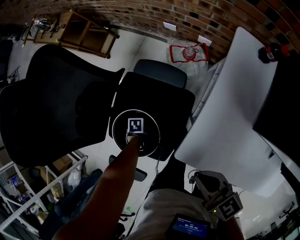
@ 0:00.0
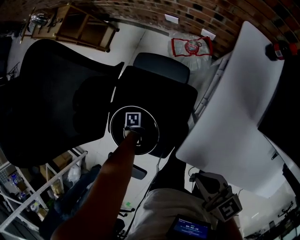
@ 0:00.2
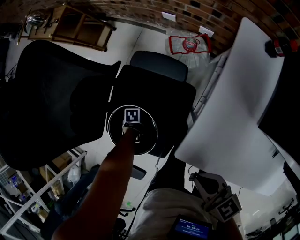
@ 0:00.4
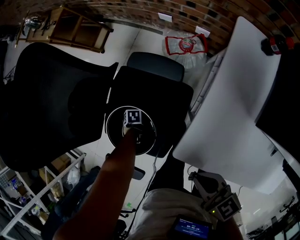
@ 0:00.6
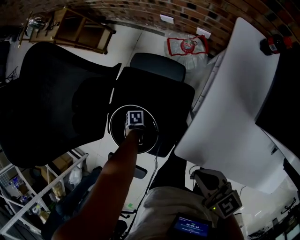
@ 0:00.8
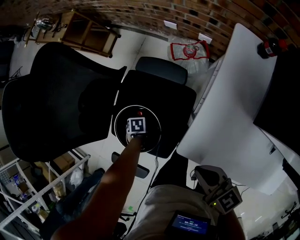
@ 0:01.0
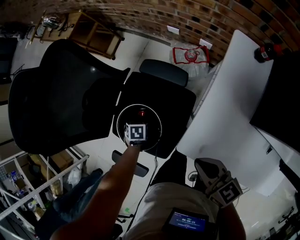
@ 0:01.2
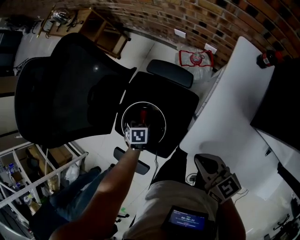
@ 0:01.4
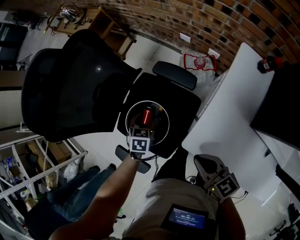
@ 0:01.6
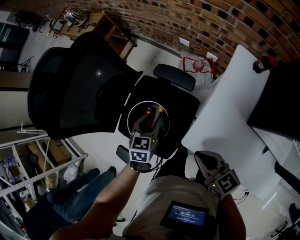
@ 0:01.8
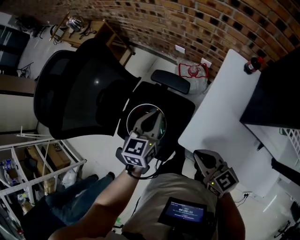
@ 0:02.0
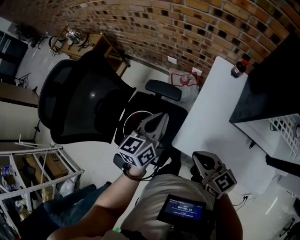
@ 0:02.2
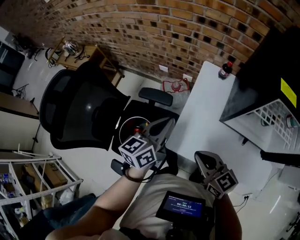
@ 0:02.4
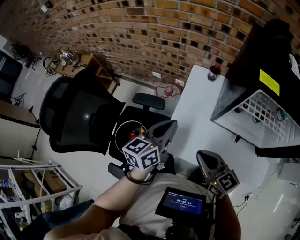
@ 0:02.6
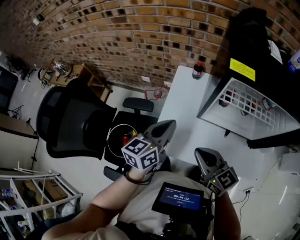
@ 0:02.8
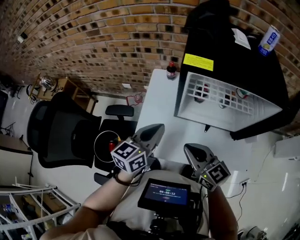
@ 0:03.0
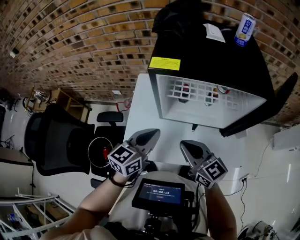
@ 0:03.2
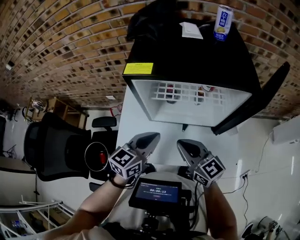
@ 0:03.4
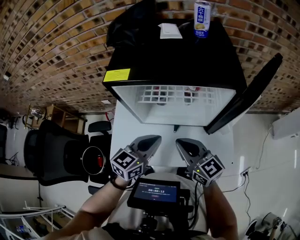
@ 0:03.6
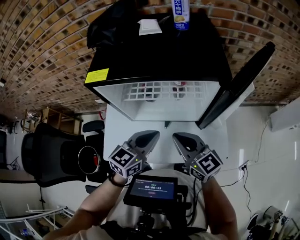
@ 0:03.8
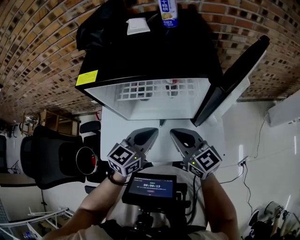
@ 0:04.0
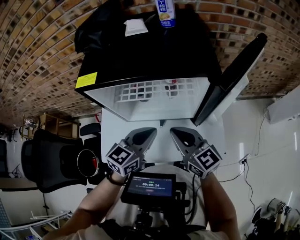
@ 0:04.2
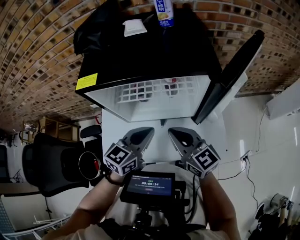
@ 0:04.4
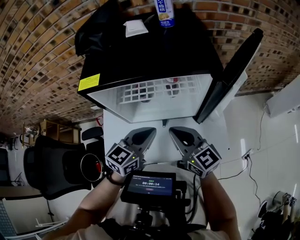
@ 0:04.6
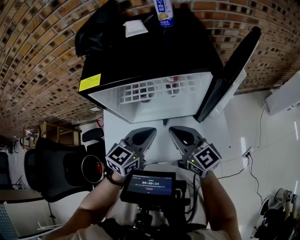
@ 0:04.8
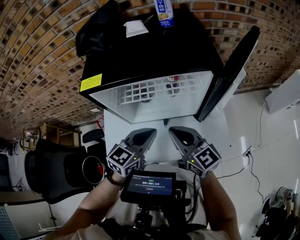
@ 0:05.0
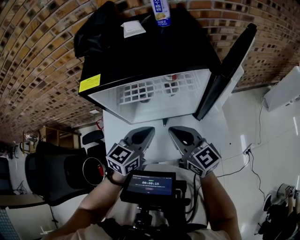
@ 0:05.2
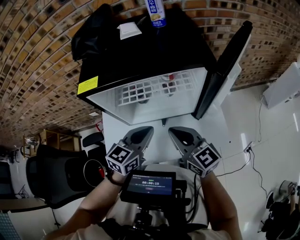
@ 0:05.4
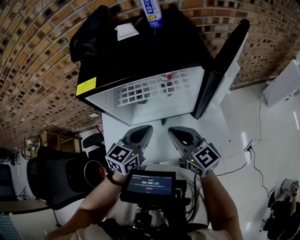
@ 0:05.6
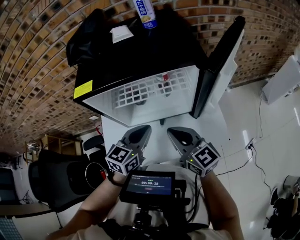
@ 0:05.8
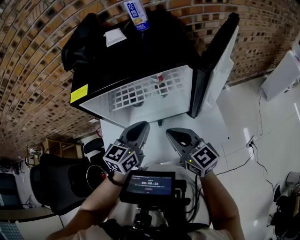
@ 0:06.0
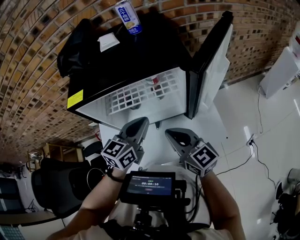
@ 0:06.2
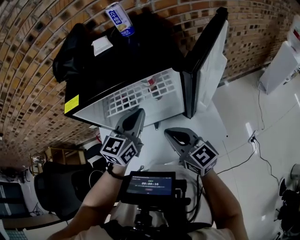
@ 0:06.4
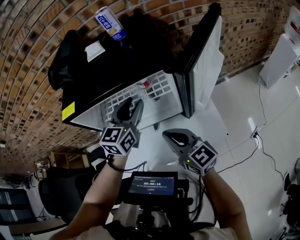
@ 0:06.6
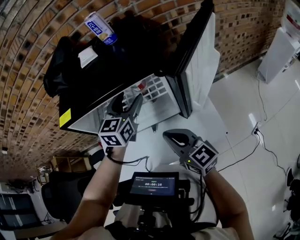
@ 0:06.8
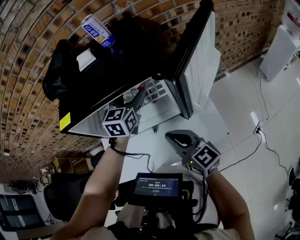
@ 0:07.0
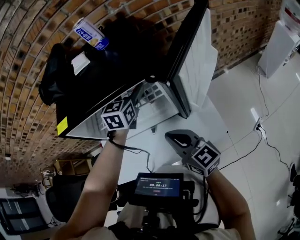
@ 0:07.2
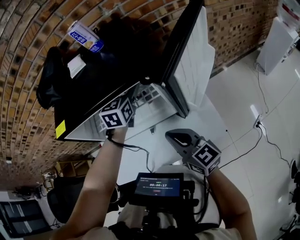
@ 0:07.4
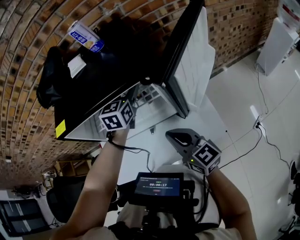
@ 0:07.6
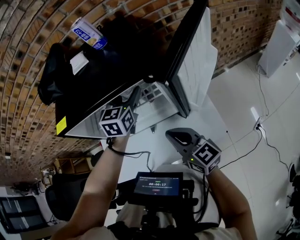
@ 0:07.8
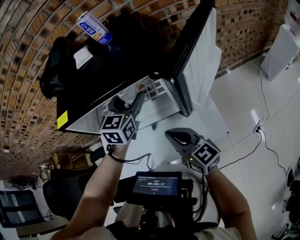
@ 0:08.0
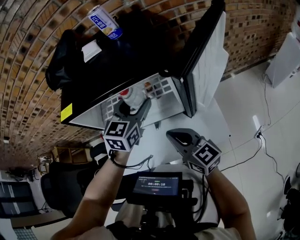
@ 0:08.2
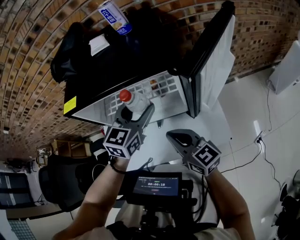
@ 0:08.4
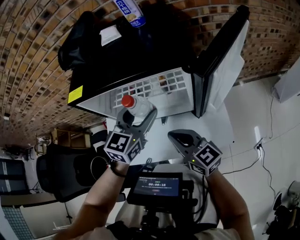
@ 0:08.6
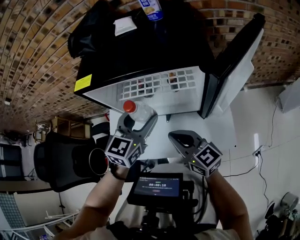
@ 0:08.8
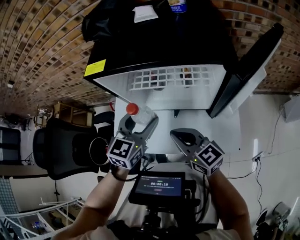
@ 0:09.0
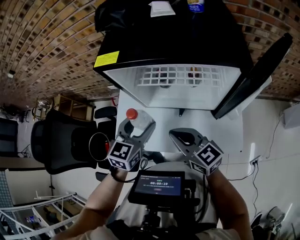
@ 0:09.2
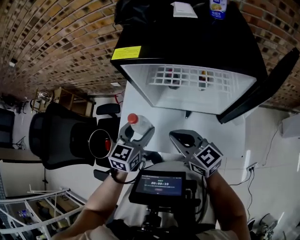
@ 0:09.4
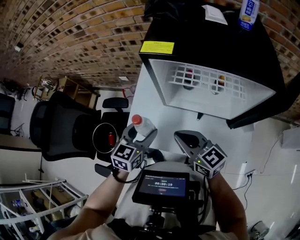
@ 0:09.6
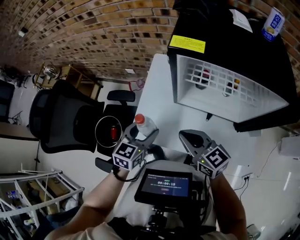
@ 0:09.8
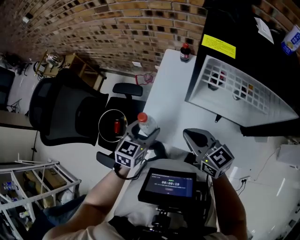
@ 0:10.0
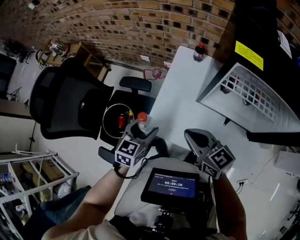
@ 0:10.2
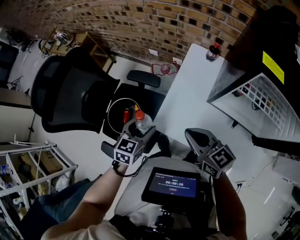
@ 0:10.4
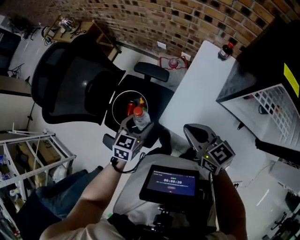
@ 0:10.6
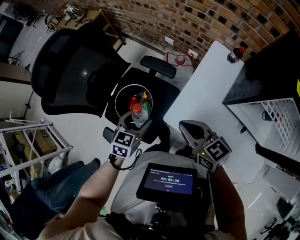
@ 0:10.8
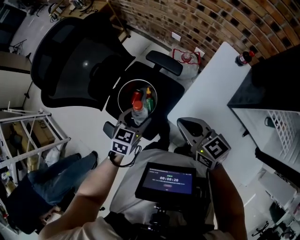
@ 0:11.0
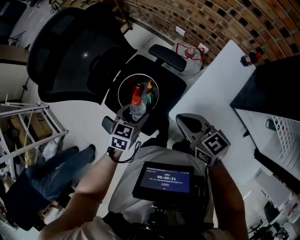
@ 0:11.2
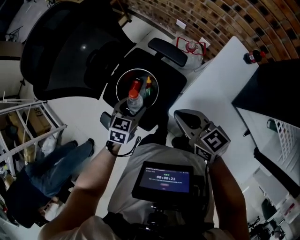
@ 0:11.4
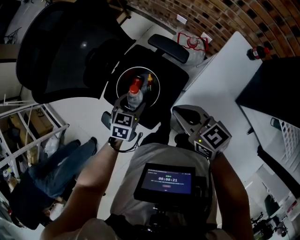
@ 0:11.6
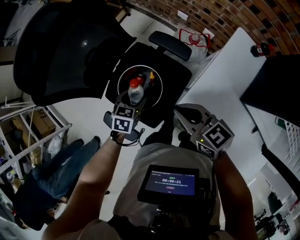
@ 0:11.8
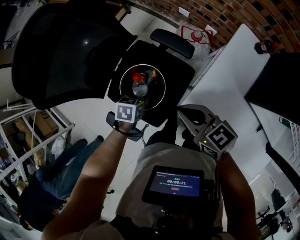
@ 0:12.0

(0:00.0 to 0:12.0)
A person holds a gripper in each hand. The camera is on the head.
0:00.0 - 0:01.6: The left gripper heads upward, covering about 20 cm, and swivels approximately 50 degrees.
0:01.6 - 0:03.0: The right gripper shifts by approximately 30 cm, and rotates about 30 degrees. The left gripper shifts by approximately 50 cm, tilts its fingers some 50 degrees upward, and closes its fingers.
0:03.0 - 0:04.4: Both grippers move to the right, roughly 20 cm. The left gripper rotates roughly 30 degrees.
0:04.4 - 0:06.0: The grippers stay close to where they were, moving slightly.
0:06.0 - 0:07.6: The left gripper heads forward and to the right, covering about 20 cm, and opens; the right gripper is displaced to the right by about 5 cm.
0:07.6 - 0:09.0: The right gripper travels to the left by approximately 10 cm, and swivels approximately 20 degrees, while the left gripper shifts about 25 cm backward and to the left.
0:09.0 - 0:10.4: The left gripper moves to the left and downward, about 40 cm, and rotates approximately 30 degrees, while the right gripper heads to the left, covering approximately 30 cm, and rotates approximately 20 degrees.
0:10.4 - 0:12.0: The right gripper heads to the left, forward and downward, covering about 20 cm, and turns by approximately 20 degrees, while the left gripper moves downward, to the left and forward, some 25 cm, and rotates about 30 degrees.

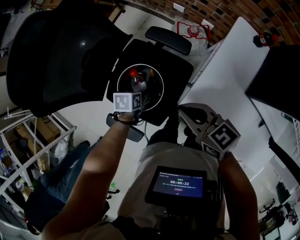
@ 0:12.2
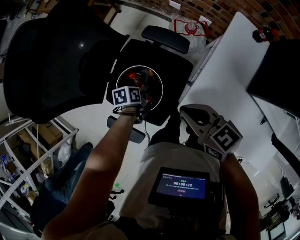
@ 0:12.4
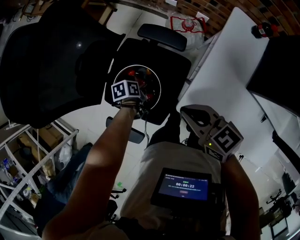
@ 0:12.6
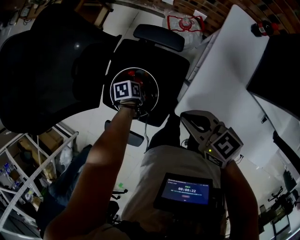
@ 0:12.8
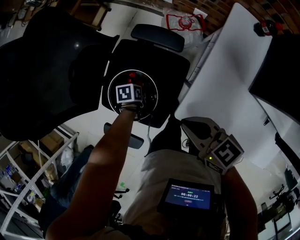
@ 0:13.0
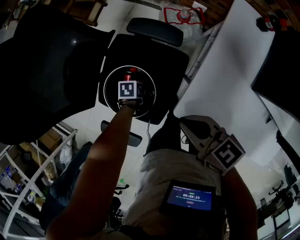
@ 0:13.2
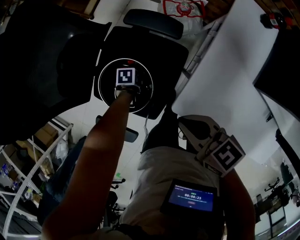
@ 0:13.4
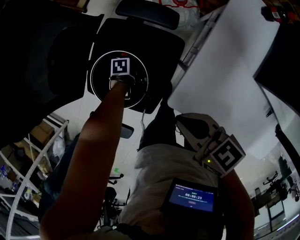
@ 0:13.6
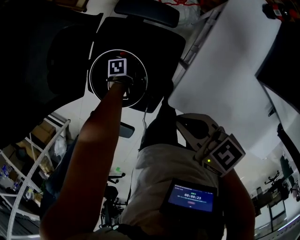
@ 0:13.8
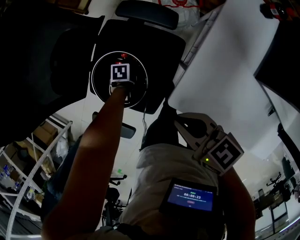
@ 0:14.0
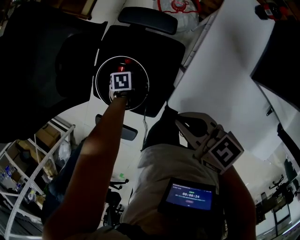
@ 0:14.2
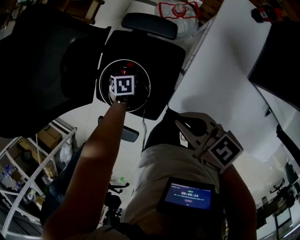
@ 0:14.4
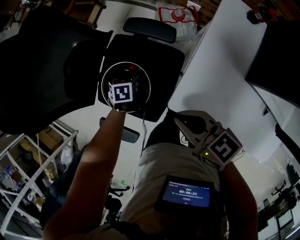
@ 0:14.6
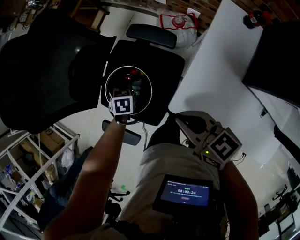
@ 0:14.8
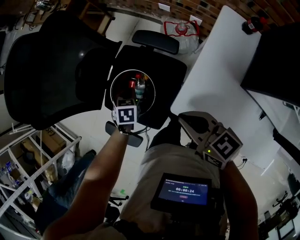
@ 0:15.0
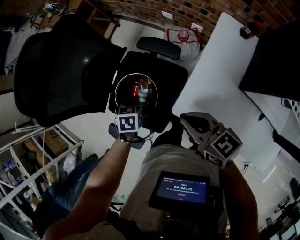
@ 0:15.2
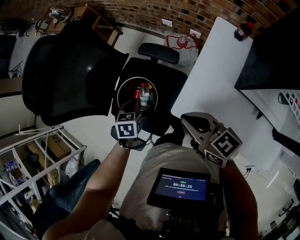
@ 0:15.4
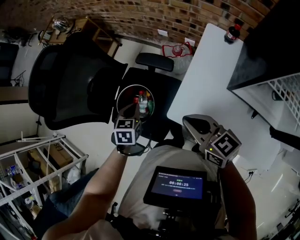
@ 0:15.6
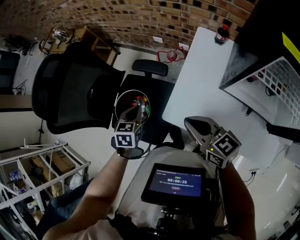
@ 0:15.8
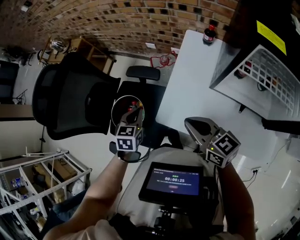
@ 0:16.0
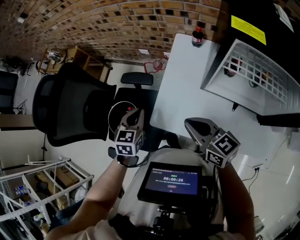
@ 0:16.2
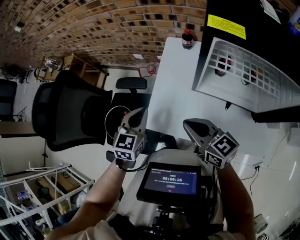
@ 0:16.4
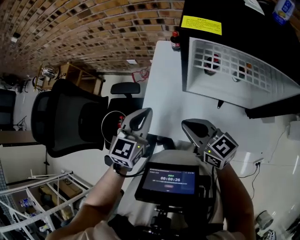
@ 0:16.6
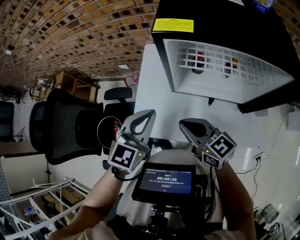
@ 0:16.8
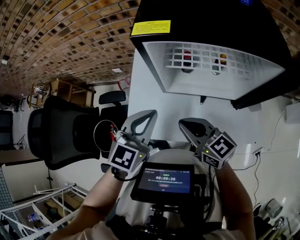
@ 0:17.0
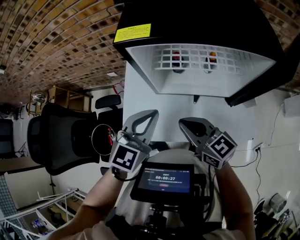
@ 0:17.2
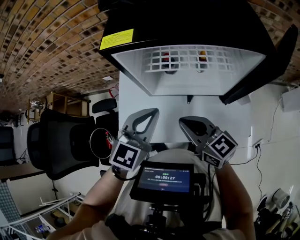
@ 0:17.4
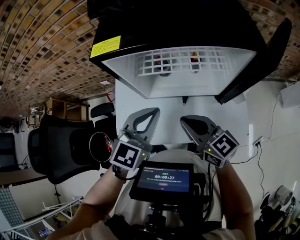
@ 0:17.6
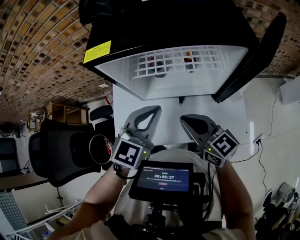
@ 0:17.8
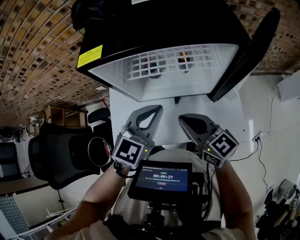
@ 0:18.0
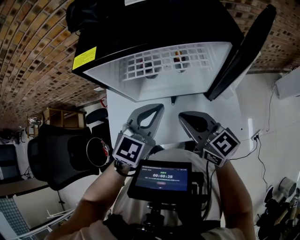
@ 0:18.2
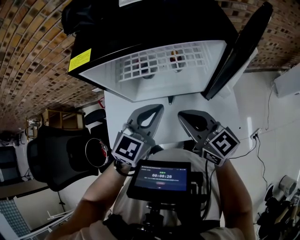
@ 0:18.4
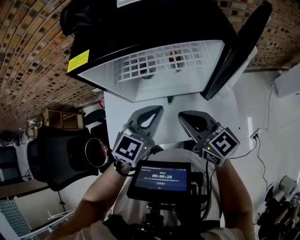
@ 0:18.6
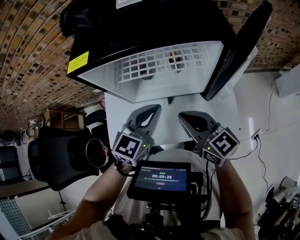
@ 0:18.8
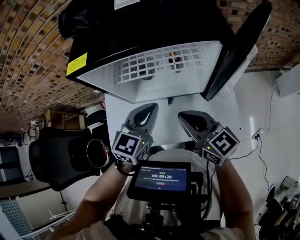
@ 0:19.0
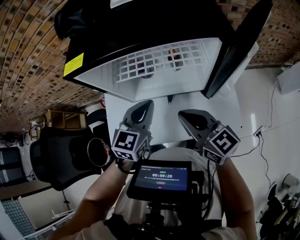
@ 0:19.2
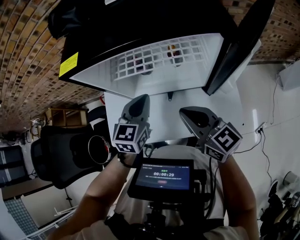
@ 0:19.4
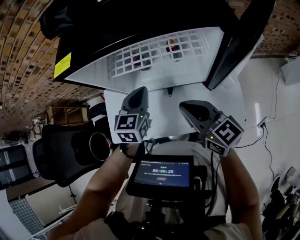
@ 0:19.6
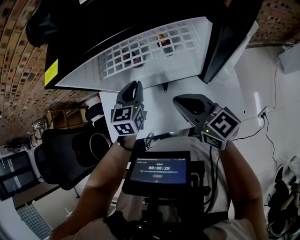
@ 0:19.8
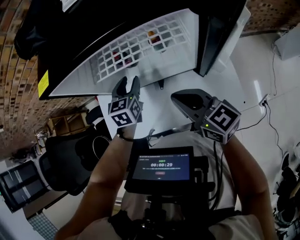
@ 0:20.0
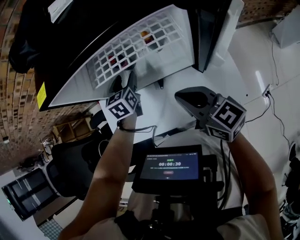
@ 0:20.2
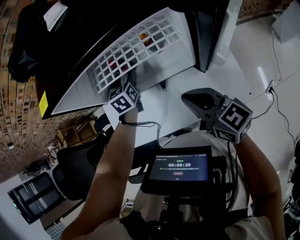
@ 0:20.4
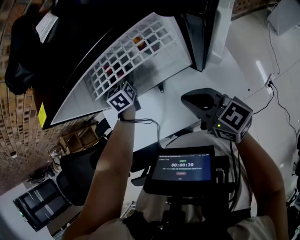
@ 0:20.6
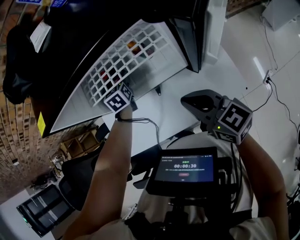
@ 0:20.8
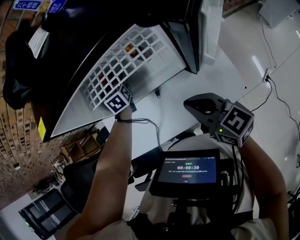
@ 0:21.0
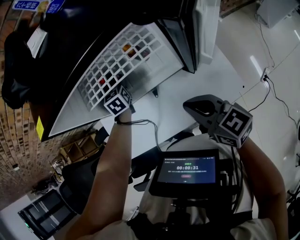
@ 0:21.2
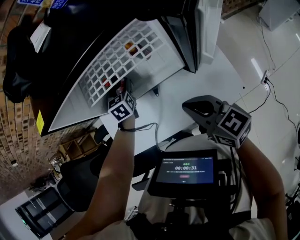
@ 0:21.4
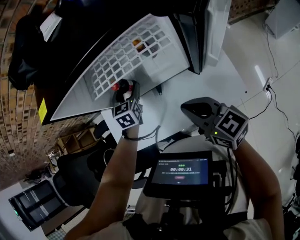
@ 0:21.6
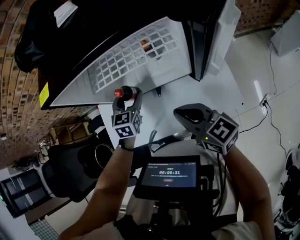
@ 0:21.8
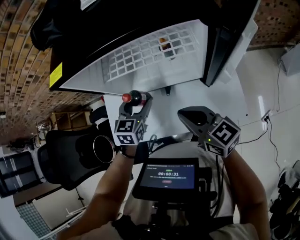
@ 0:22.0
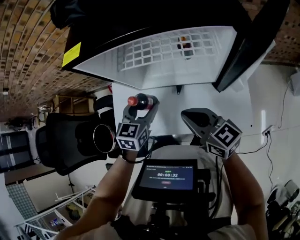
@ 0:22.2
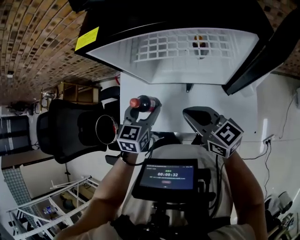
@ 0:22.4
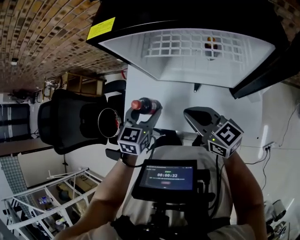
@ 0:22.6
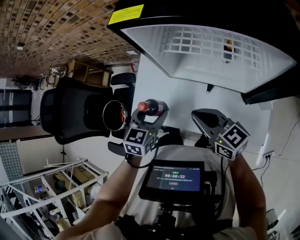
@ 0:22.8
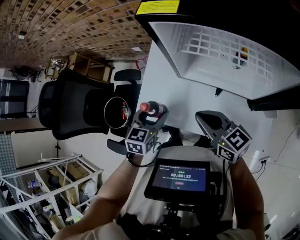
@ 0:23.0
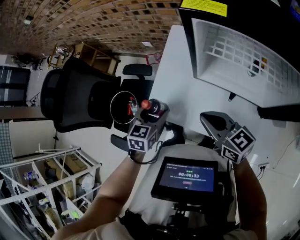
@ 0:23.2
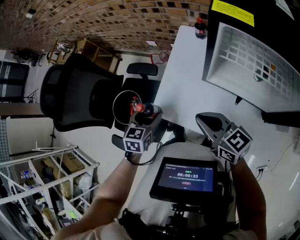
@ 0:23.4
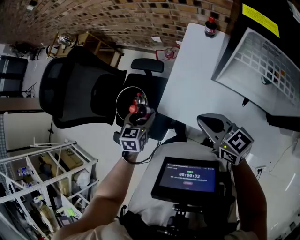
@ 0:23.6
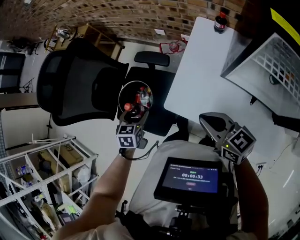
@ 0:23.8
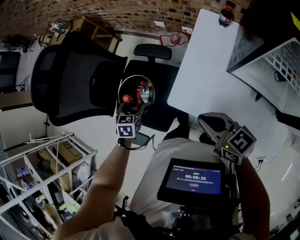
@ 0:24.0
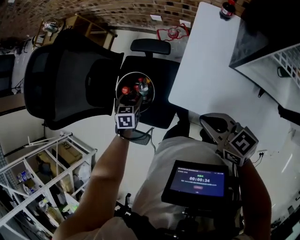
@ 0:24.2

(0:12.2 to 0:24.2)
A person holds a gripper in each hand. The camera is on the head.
0:12.2 - 0:13.8: The right gripper shifts approximately 5 cm downward. The left gripper goes roughly 20 cm downward, and rotates approximately 30 degrees.
0:13.8 - 0:15.2: The left gripper is displaced upward by some 25 cm, changes its angle by some 40 degrees, and closes up, while the right gripper travels upward by approximately 10 cm.
0:15.2 - 0:16.6: The left gripper ends up roughly 40 cm from where it was, and angles its fingers upward, by about 40 degrees, while the right gripper shifts by roughly 25 cm, and rotates roughly 30 degrees.
0:16.6 - 0:18.2: The grippers both shift to the right by about 25 cm. The right gripper turns by some 20 degrees. Meanwhile the left gripper turns by about 30 degrees.
0:18.2 - 0:19.8: The right gripper moves approximately 5 cm, while the left gripper moves downward, forward and to the left, approximately 15 cm, and swivels approximately 30 degrees.
0:19.8 - 0:21.2: The left gripper shifts approximately 15 cm forward and downward, and opens up. Meanwhile the right gripper changes place by some 5 cm.
0:21.2 - 0:22.6: The left gripper travels backward and to the left by roughly 25 cm; the right gripper travels to the left by about 10 cm, and turns by roughly 30 degrees.
0:22.6 - 0:24.2: The right gripper goes roughly 30 cm to the left, and turns by about 20 degrees; the left gripper shifts some 50 cm to the left and downward, and rotates approximately 30 degrees.
